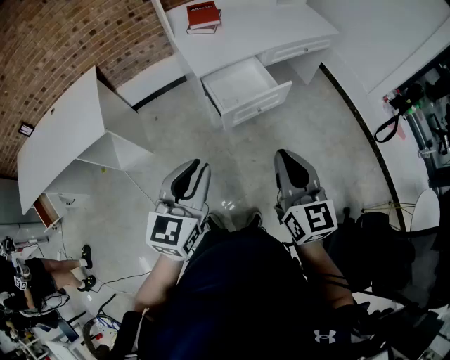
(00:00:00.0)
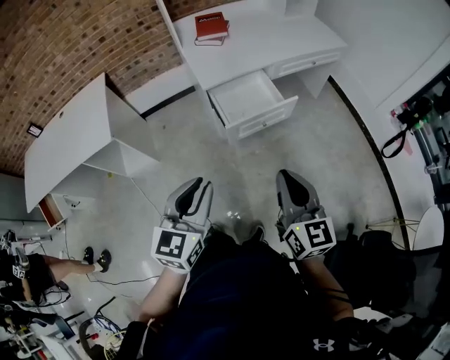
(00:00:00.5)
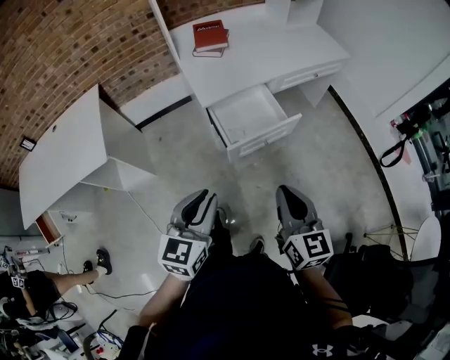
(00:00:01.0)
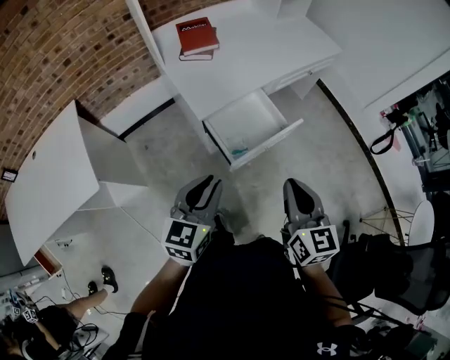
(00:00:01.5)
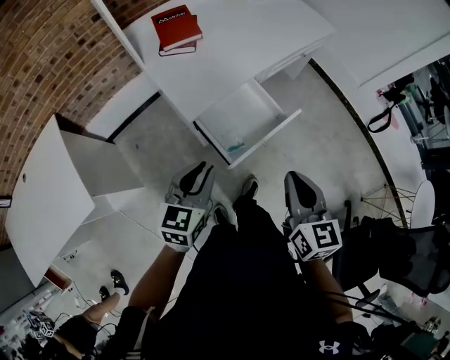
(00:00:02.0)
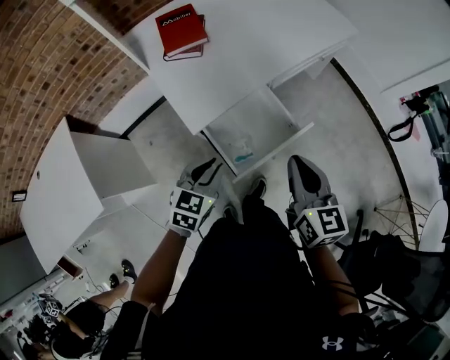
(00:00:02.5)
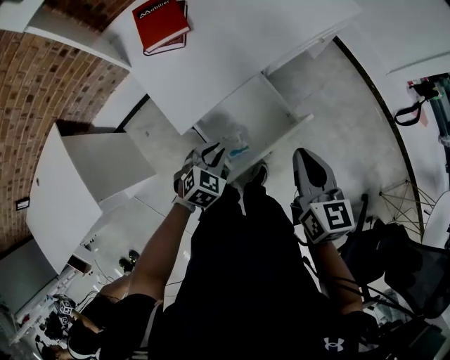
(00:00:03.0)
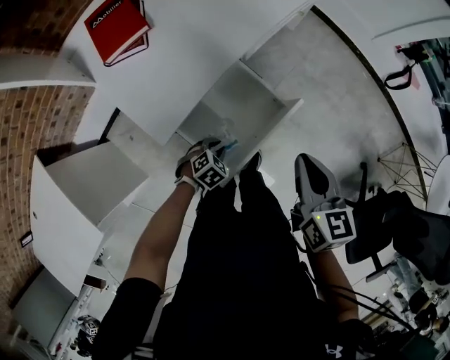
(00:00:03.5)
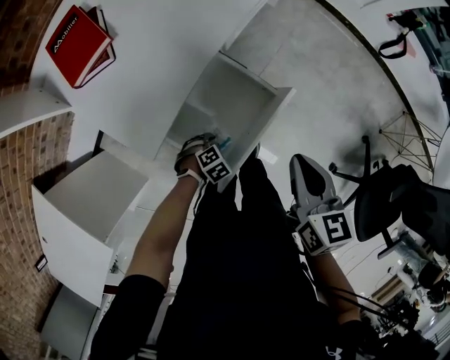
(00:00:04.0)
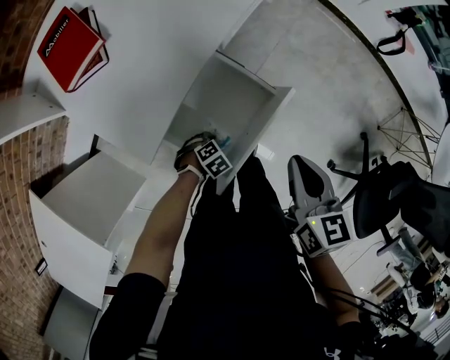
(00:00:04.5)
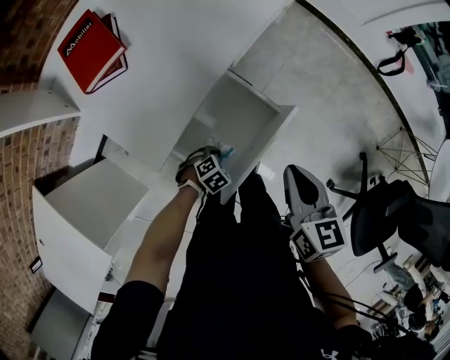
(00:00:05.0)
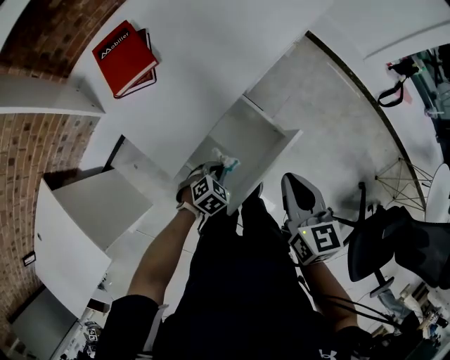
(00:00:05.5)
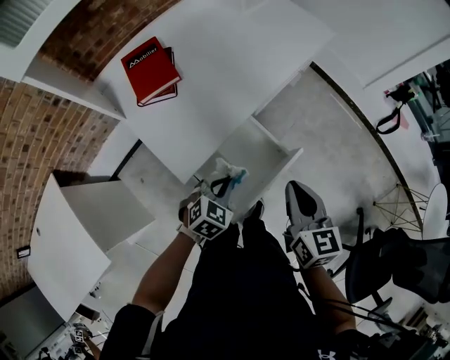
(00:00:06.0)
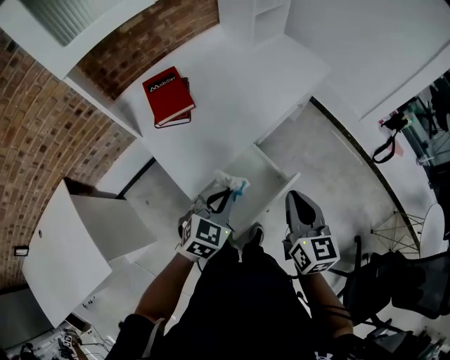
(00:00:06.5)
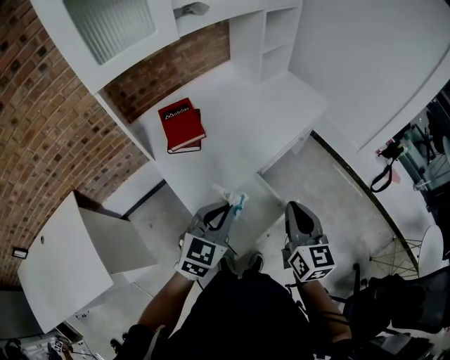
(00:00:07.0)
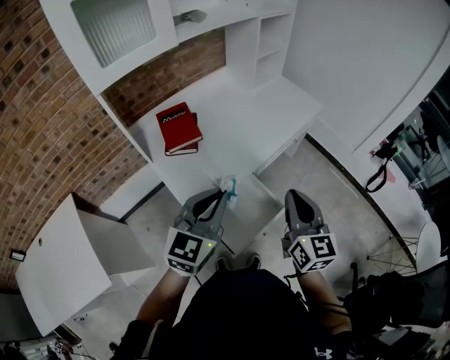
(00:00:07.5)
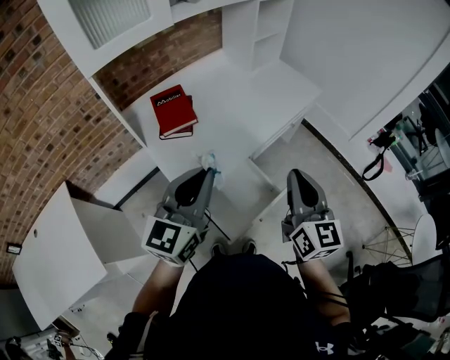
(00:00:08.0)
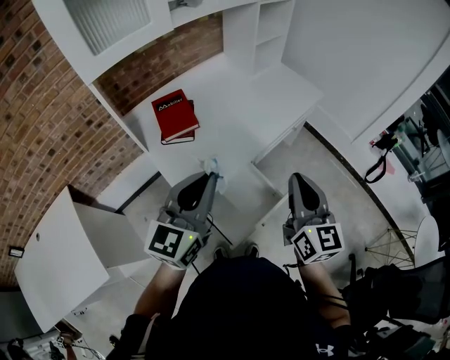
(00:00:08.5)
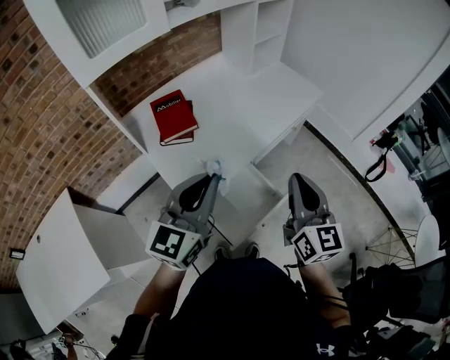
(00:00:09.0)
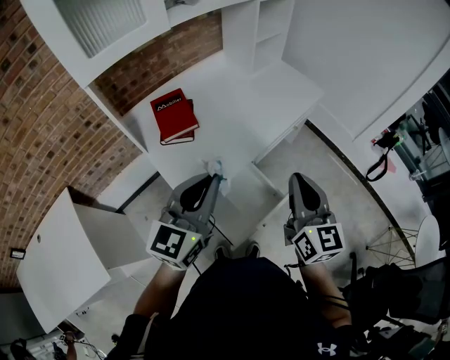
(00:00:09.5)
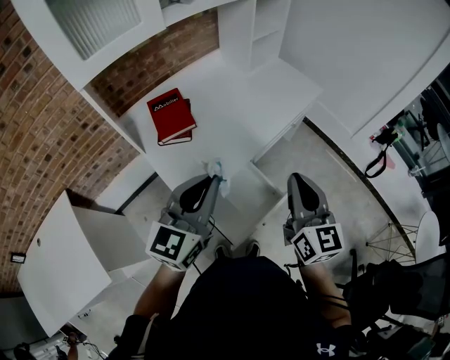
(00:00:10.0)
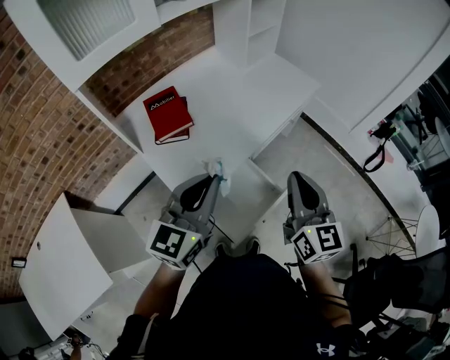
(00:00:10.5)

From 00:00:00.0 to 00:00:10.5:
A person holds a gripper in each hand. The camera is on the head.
From 00:00:00.0 to 00:00:02.0: The right gripper shifts about 20 cm forward, and changes its angle by about 20 degrees; the left gripper moves forward and downward, approximately 30 cm.
From 00:00:02.0 to 00:00:04.0: The left gripper is displaced downward by some 40 cm, and angles its fingers downward, by roughly 60 degrees, while the right gripper ends up approximately 20 cm from where it was, and swivels some 30 degrees.
From 00:00:04.0 to 00:00:06.5: The left gripper travels upward by about 40 cm, points its fingers approximately 50 degrees further upward, and closes its fingers. Meanwhile the right gripper is displaced upward by some 15 cm, and turns by about 20 degrees.
From 00:00:06.5 to 00:00:08.5: The right gripper heads upward, covering some 10 cm. Meanwhile the left gripper heads upward, covering about 20 cm, and points its fingers approximately 30 degrees further upward.
From 00:00:08.5 to 00:00:10.5: The grippers move only a little.

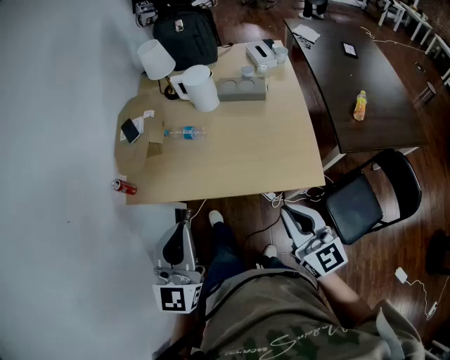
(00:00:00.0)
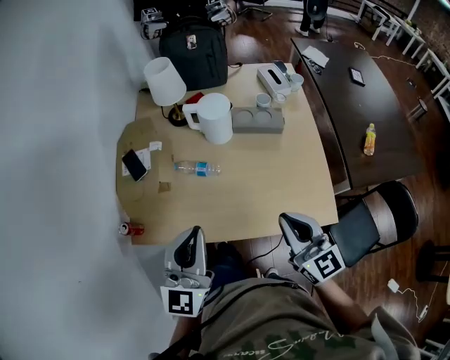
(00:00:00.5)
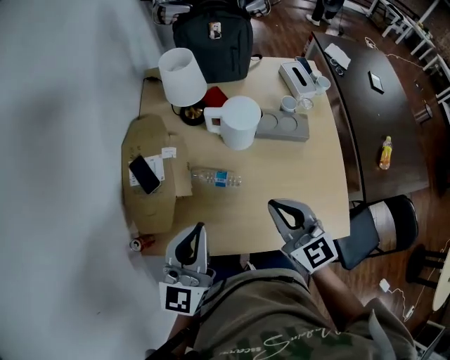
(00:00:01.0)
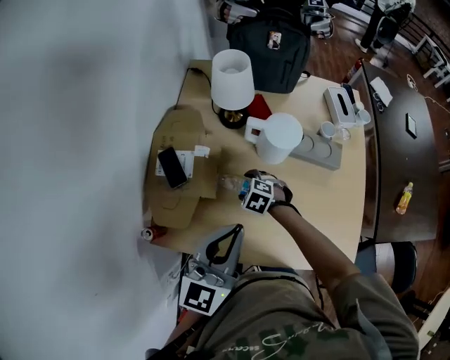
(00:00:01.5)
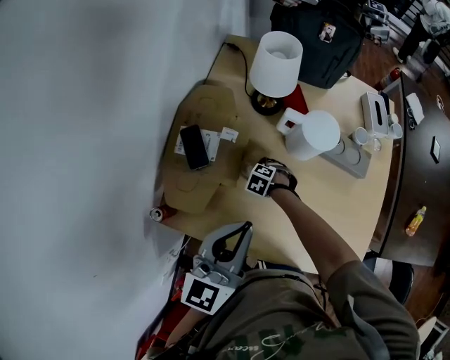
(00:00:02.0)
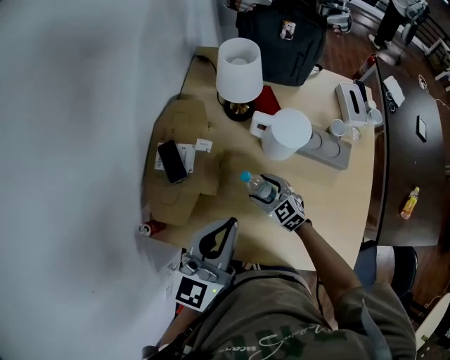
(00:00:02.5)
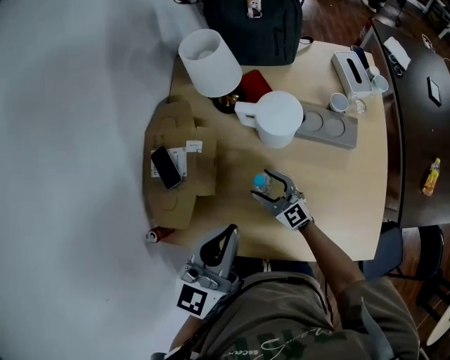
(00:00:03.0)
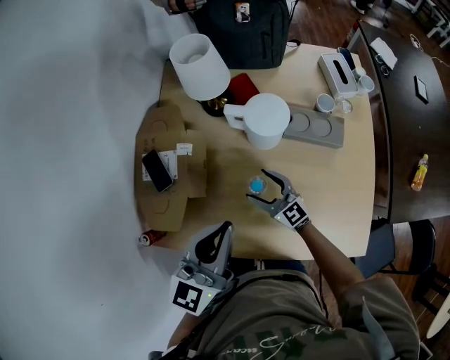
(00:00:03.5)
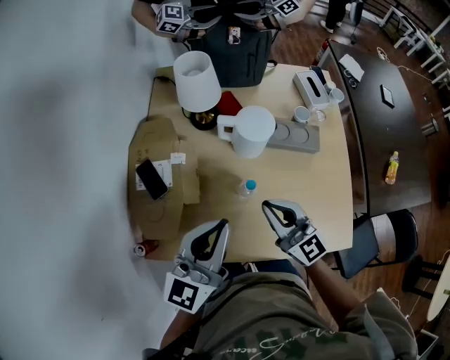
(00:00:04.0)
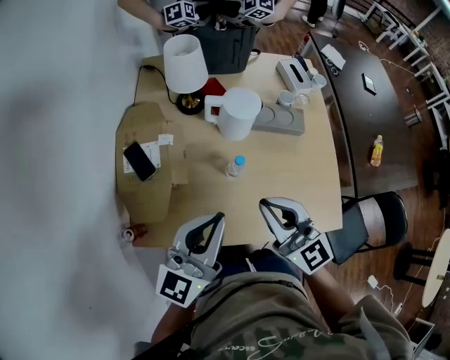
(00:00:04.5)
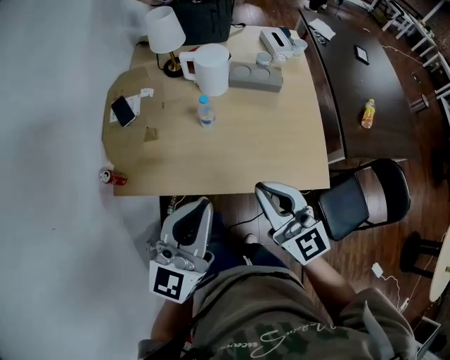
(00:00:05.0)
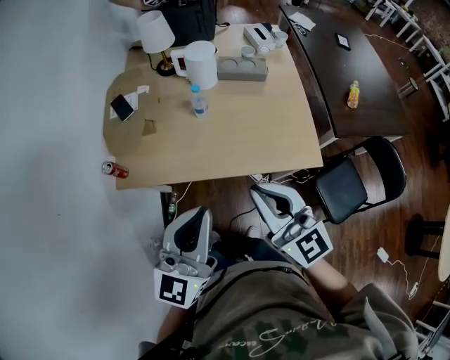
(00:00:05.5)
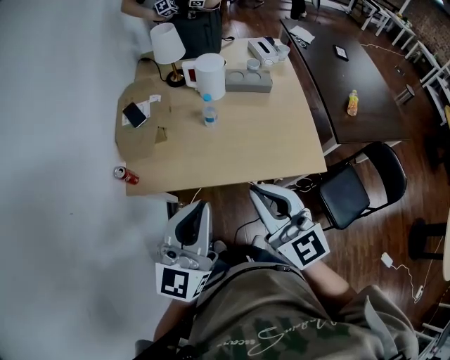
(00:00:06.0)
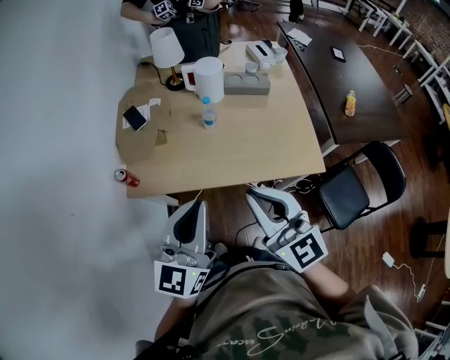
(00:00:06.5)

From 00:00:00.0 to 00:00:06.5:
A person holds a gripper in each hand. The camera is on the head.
From 00:00:00.0 to 00:00:02.0: The right gripper ends up some 70 cm from where it was, points its fingers approximately 70 degrees further downward, and opens; the left gripper moves approximately 35 cm.
From 00:00:02.0 to 00:00:04.5: The left gripper ends up approximately 5 cm from where it was, and turns by some 20 degrees. The right gripper heads upward, covering approximately 40 cm, tilts its fingers approximately 80 degrees upward, and closes.
From 00:00:04.5 to 00:00:06.5: Both grippers move backward, some 30 cm.

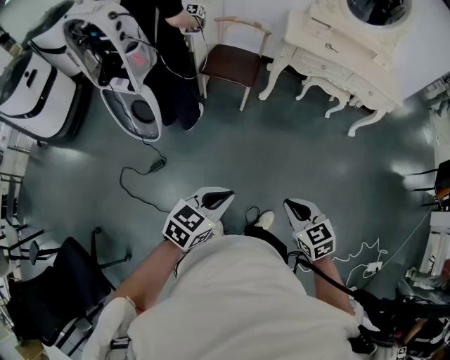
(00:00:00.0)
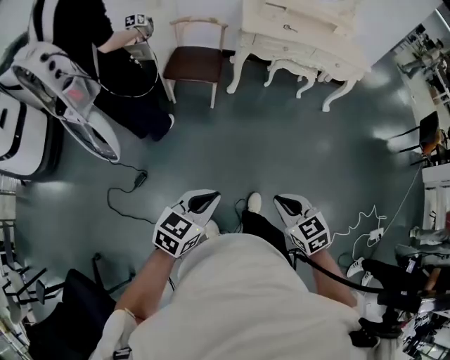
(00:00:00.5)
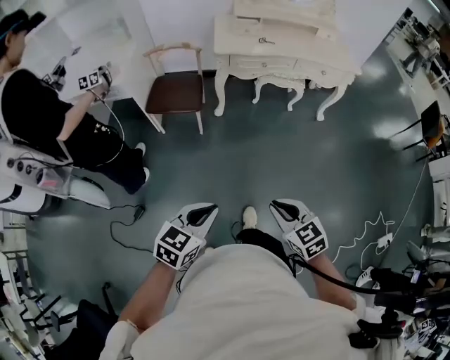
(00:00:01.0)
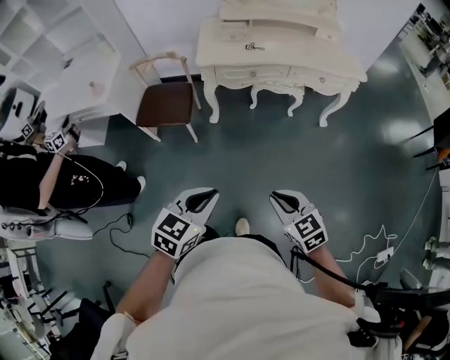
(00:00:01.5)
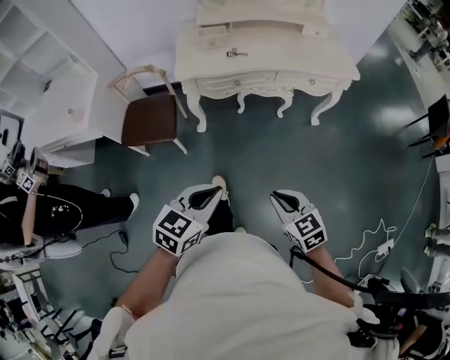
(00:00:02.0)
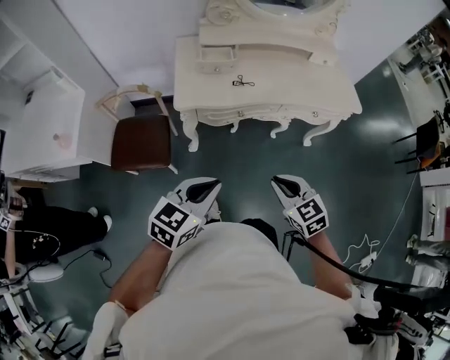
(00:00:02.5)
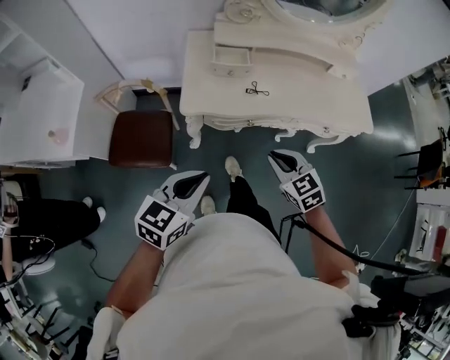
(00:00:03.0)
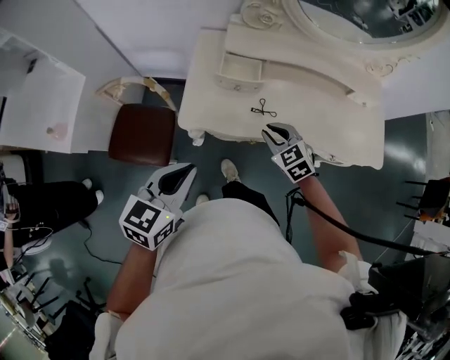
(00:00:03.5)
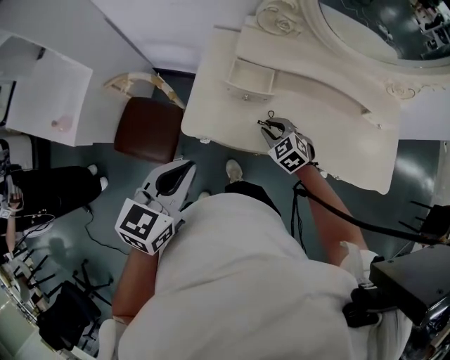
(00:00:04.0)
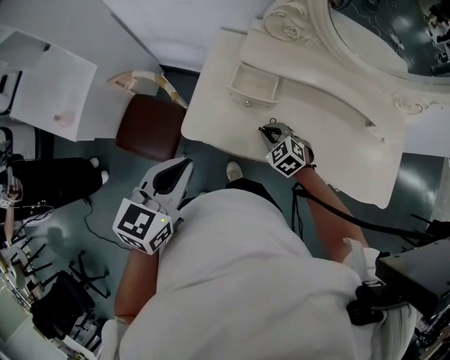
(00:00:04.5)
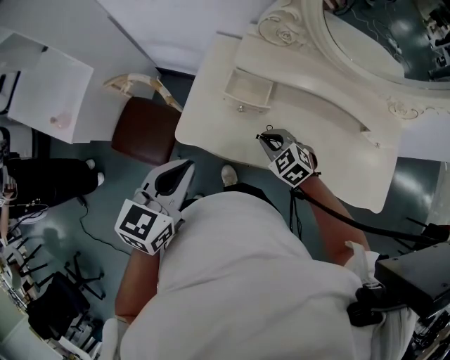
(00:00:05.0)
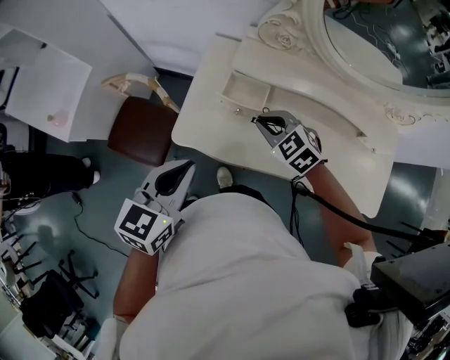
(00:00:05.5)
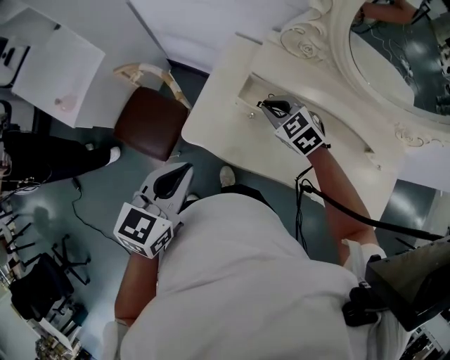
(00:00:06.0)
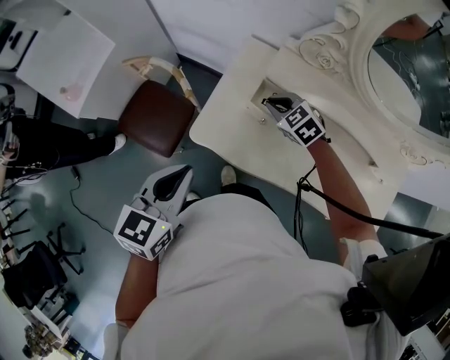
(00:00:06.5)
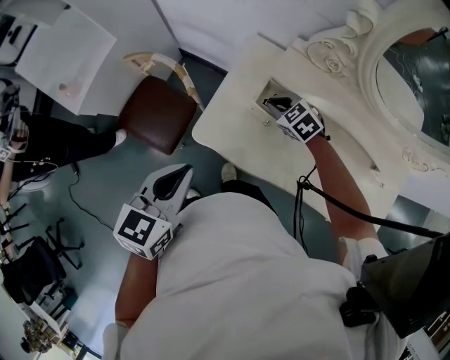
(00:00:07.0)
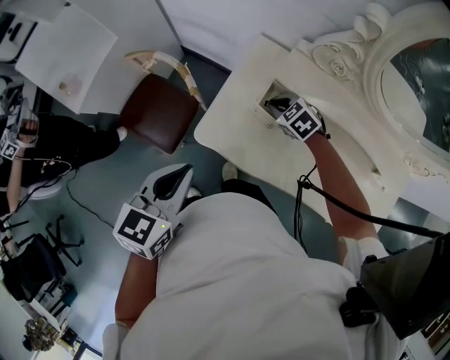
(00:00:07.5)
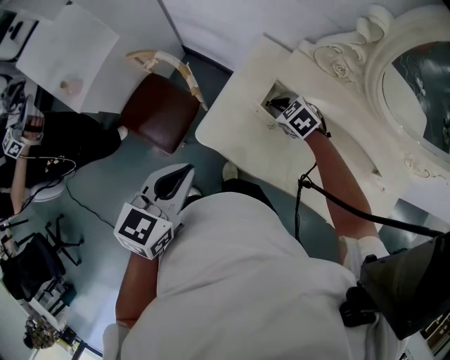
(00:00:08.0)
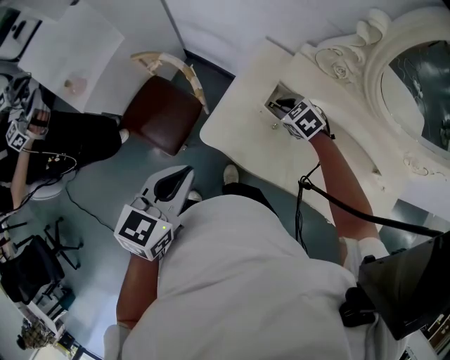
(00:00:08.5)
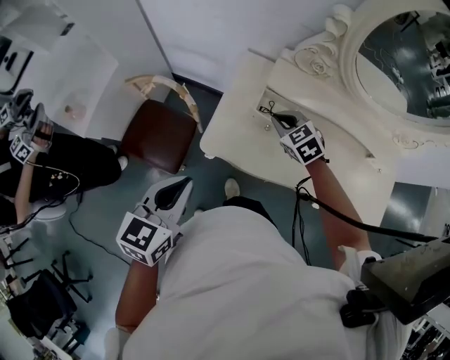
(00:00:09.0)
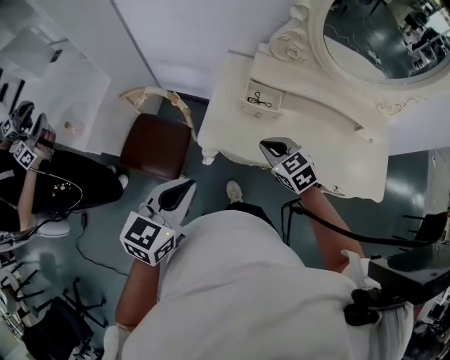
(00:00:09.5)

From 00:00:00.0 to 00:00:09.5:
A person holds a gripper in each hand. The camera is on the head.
From 00:00:00.0 to 00:00:02.0: The two grippers travel together, forward and to the right, some 50 cm.
From 00:00:02.0 to 00:00:04.0: The pair of grippers is taken forward, some 60 cm. The left gripper changes its angle by about 30 degrees; the right gripper turns by approximately 40 degrees.
From 00:00:04.0 to 00:00:05.5: The left gripper changes place by some 5 cm. The right gripper shifts approximately 10 cm upward and forward.
From 00:00:05.5 to 00:00:07.5: The right gripper travels forward and downward by about 15 cm. The left gripper heads to the left, covering some 5 cm.
From 00:00:07.5 to 00:00:09.5: The left gripper shifts some 10 cm backward and to the left. The right gripper heads backward and upward, covering approximately 25 cm, and changes its angle by about 30 degrees.
